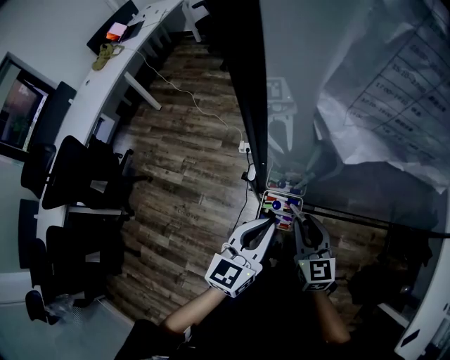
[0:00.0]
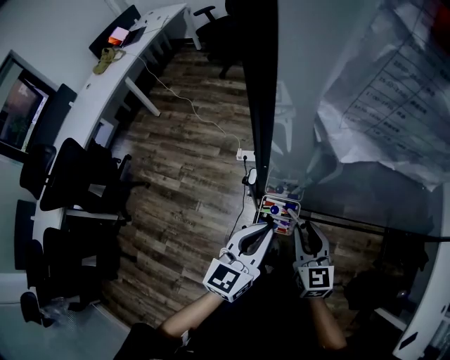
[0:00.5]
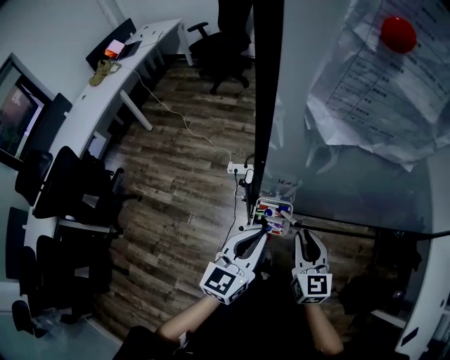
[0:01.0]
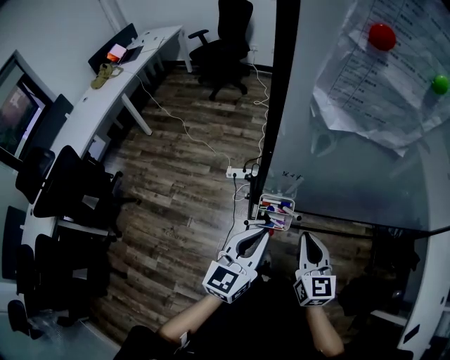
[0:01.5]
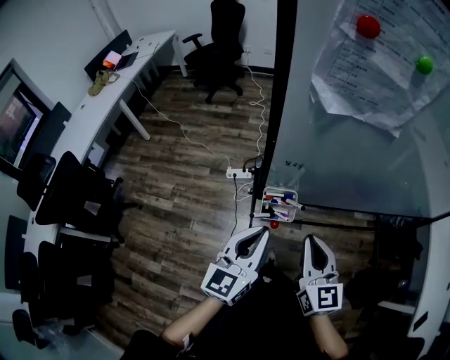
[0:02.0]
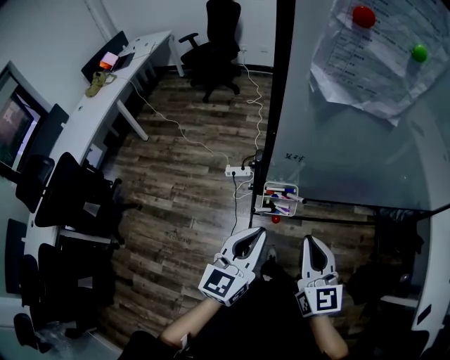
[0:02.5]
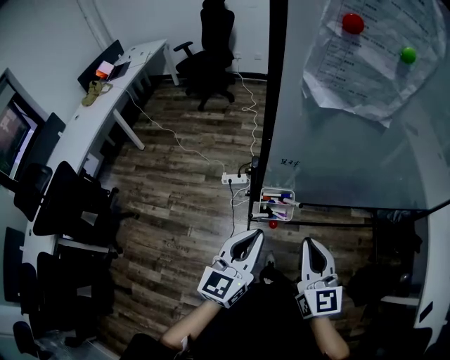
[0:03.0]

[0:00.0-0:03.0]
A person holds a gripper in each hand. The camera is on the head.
0:00.0 to 0:01.5: The left gripper changes place by approximately 5 cm. The right gripper moves upward and backward, approximately 10 cm.
0:01.5 to 0:03.0: The left gripper ends up approximately 5 cm from where it was; the right gripper goes roughly 10 cm backward and upward.

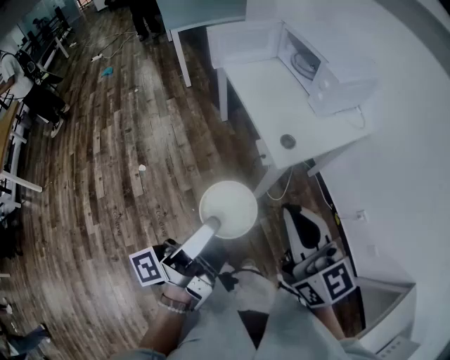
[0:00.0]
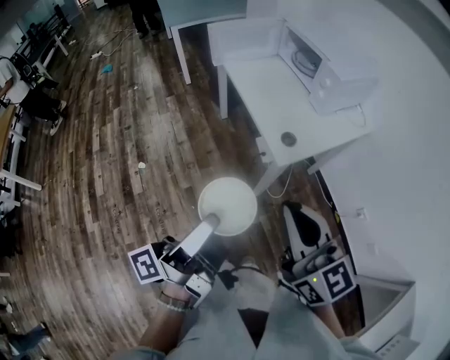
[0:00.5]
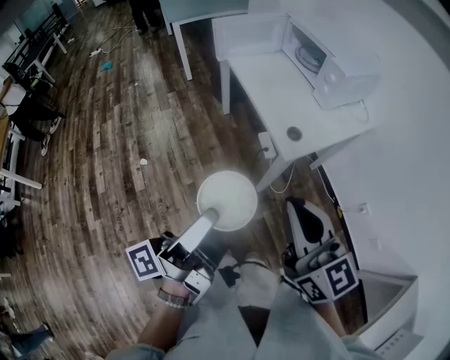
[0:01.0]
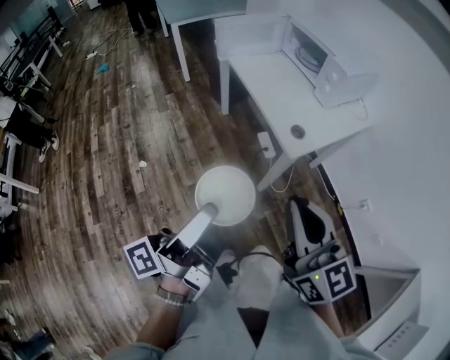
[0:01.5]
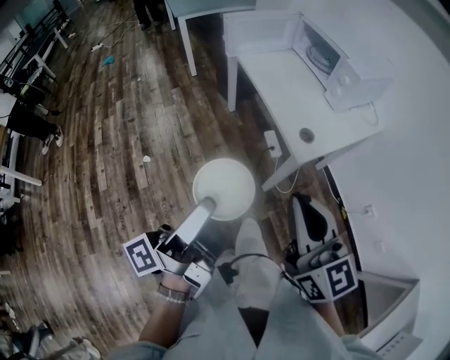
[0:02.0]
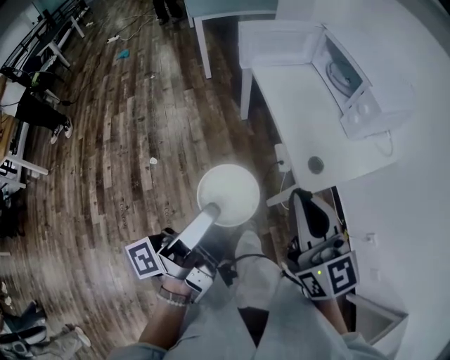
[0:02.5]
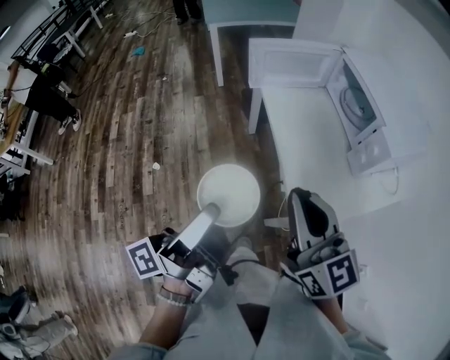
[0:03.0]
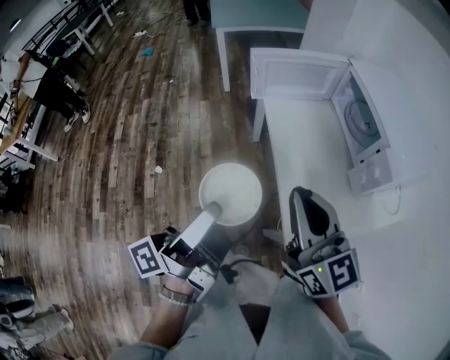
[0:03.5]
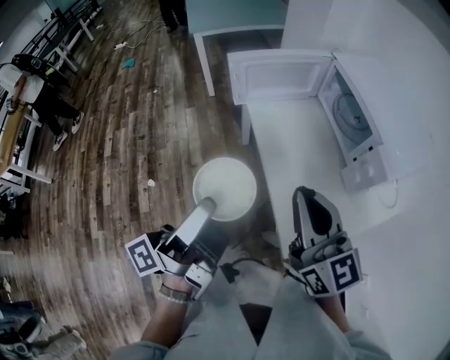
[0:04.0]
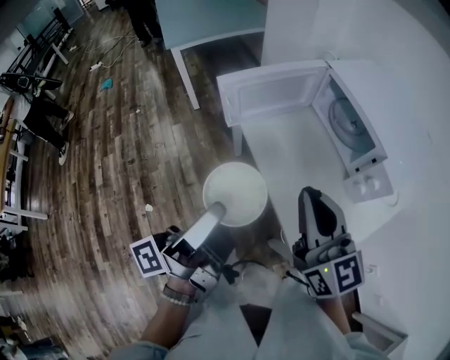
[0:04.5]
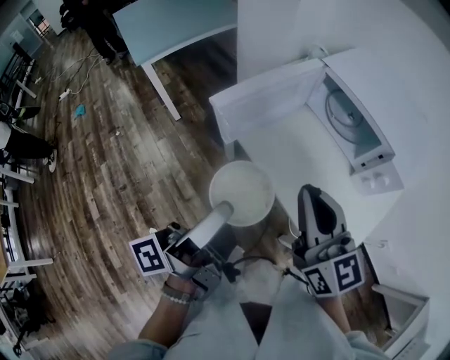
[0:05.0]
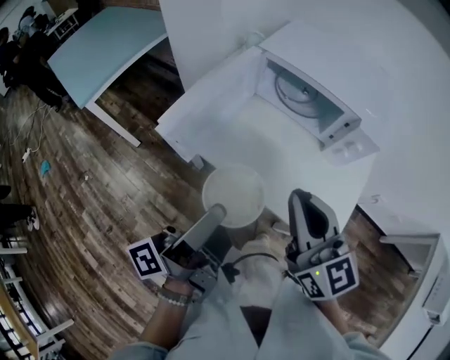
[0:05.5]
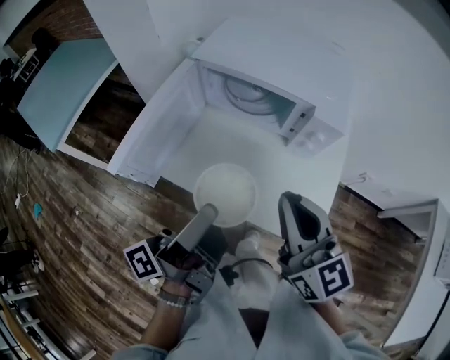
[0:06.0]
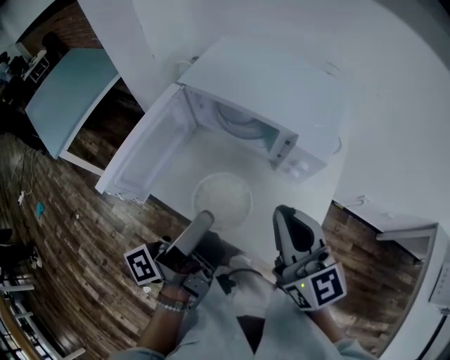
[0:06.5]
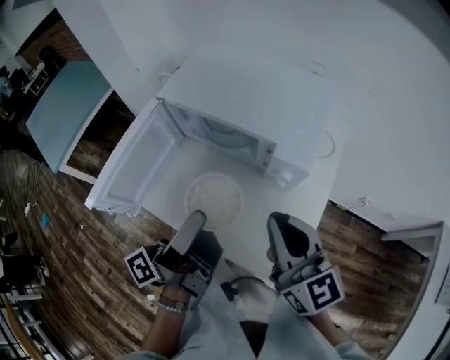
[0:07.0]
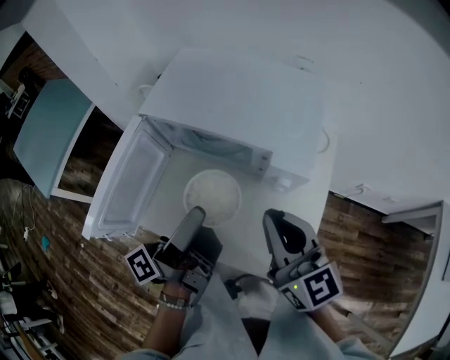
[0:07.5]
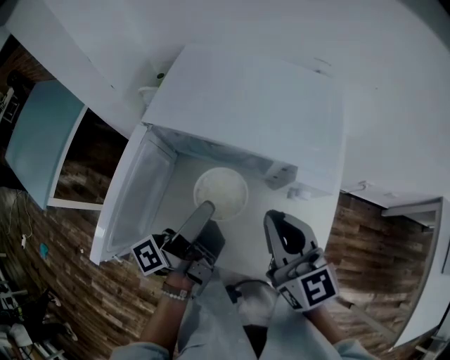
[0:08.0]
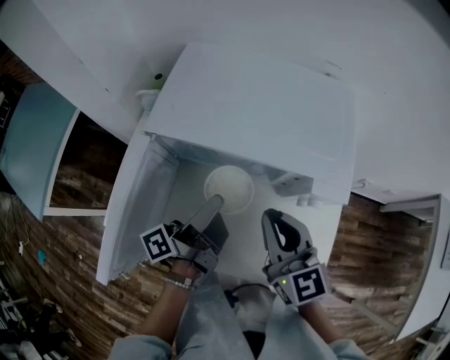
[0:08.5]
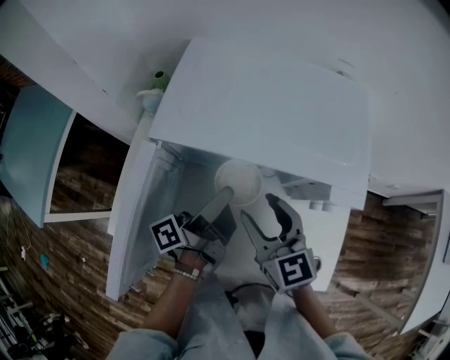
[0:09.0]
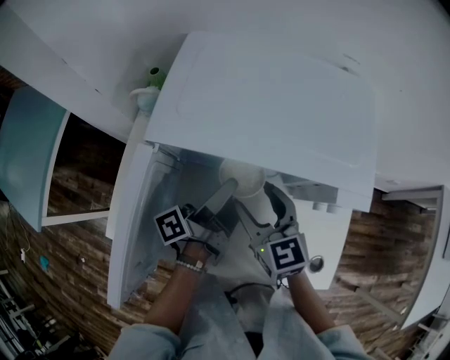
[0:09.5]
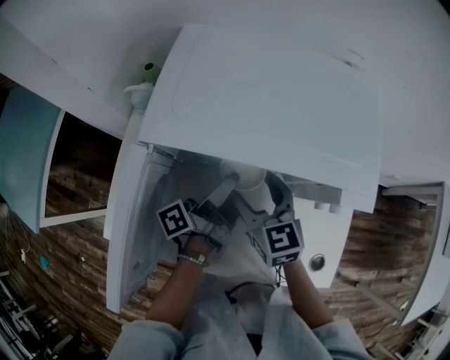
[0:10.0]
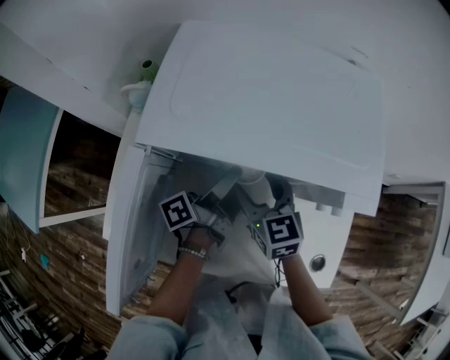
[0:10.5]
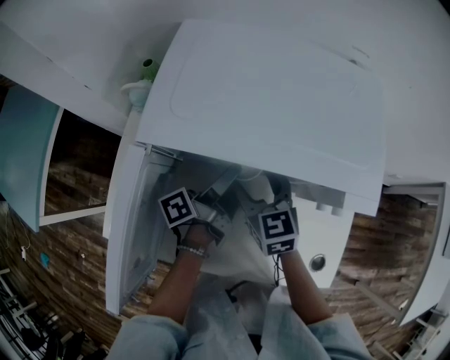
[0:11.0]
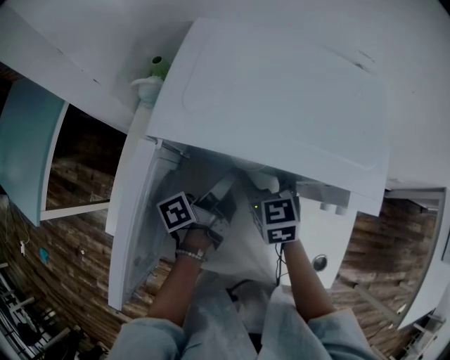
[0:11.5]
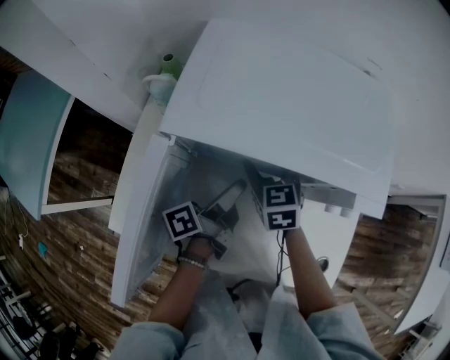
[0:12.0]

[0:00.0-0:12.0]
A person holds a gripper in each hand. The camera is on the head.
0:00.0 to 0:02.0: The right gripper ends up about 5 cm from where it was.
0:02.0 to 0:04.0: The right gripper moves approximately 35 cm.
0:04.0 to 0:06.0: The right gripper rotates approximately 50 degrees.
0:06.0 to 0:08.0: The right gripper changes place by some 15 cm.
0:08.0 to 0:10.0: The right gripper shifts by some 20 cm, and opens.
0:10.0 to 0:12.0: The right gripper moves approximately 5 cm.

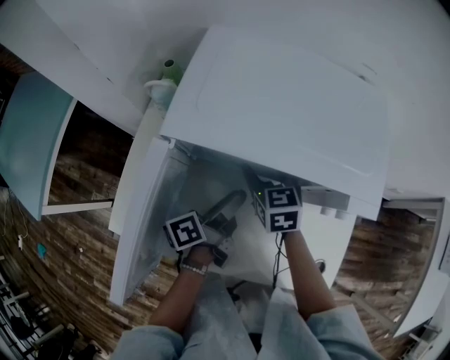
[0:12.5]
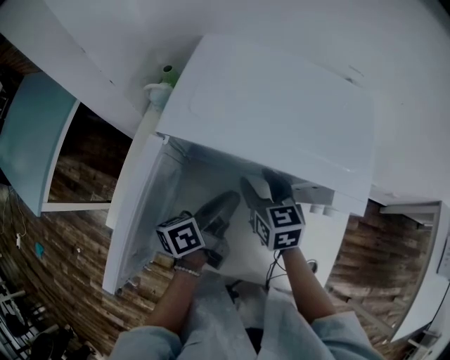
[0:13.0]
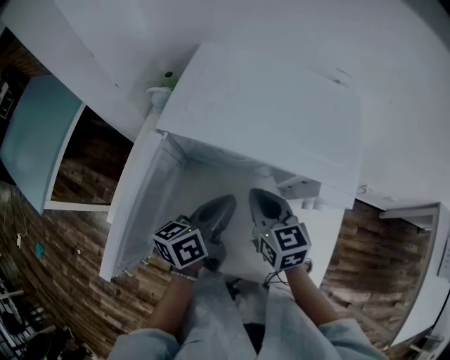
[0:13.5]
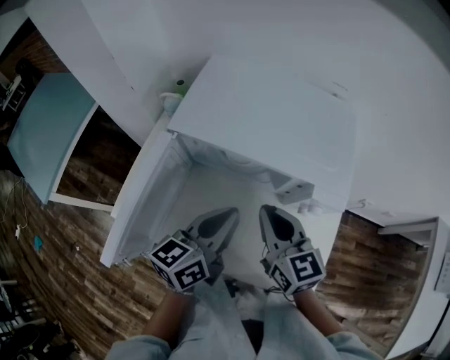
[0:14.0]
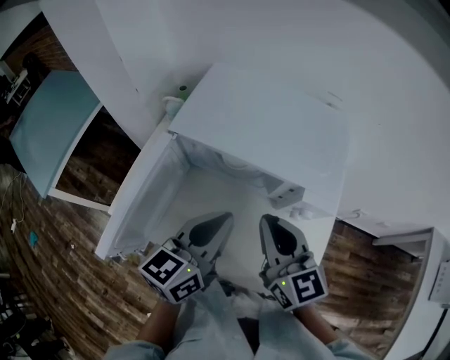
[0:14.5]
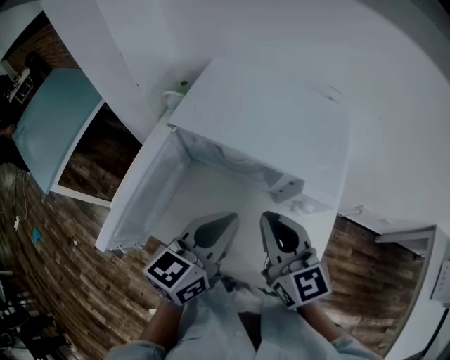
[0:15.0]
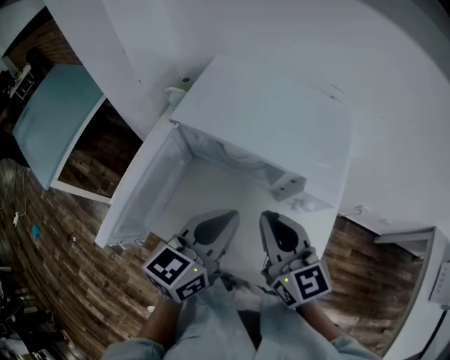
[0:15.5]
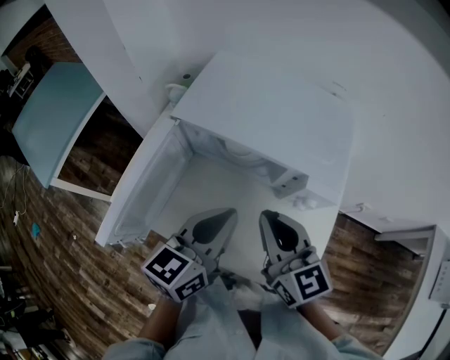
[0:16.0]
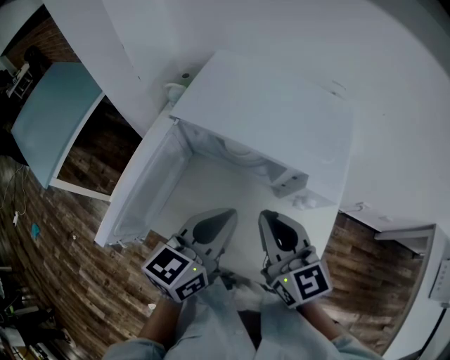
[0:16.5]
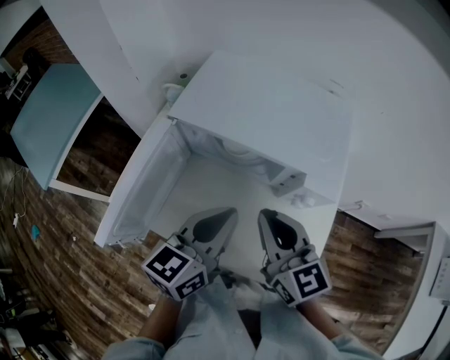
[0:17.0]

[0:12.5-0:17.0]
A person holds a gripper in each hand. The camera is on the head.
0:12.5 to 0:14.5: The right gripper moves upward, approximately 20 cm, swivels roughly 30 degrees, and closes up.

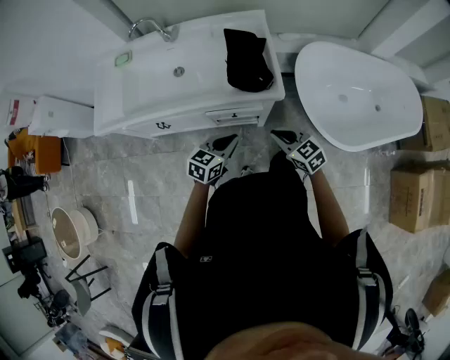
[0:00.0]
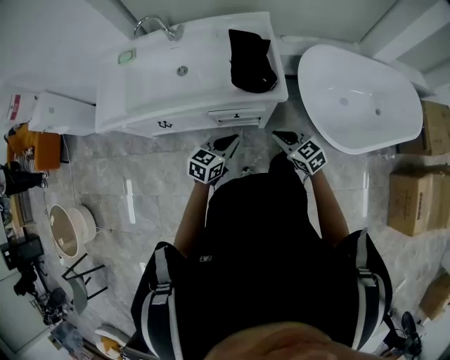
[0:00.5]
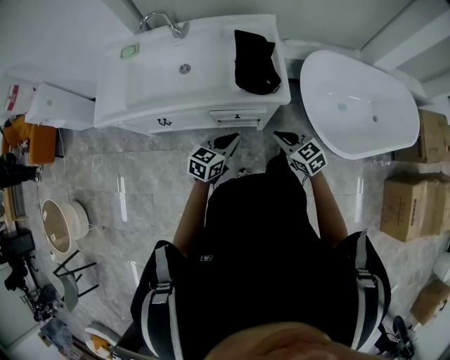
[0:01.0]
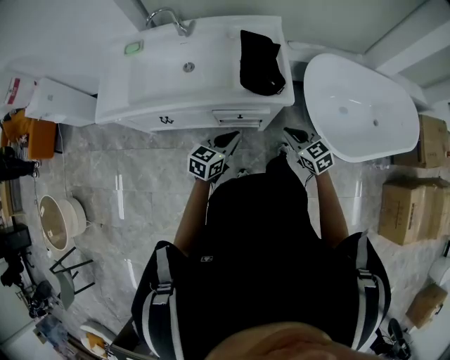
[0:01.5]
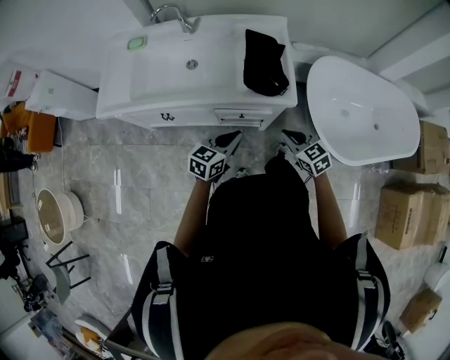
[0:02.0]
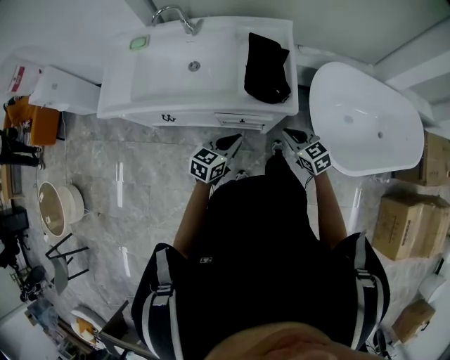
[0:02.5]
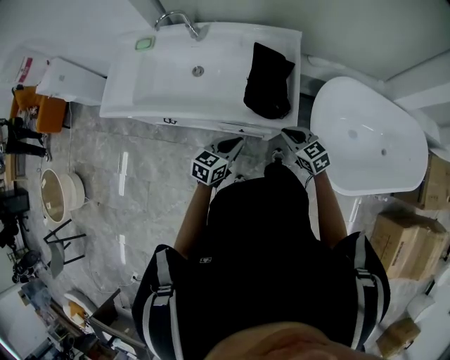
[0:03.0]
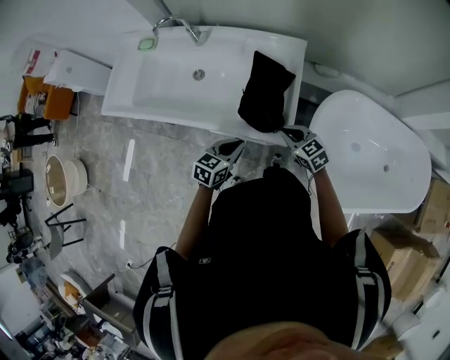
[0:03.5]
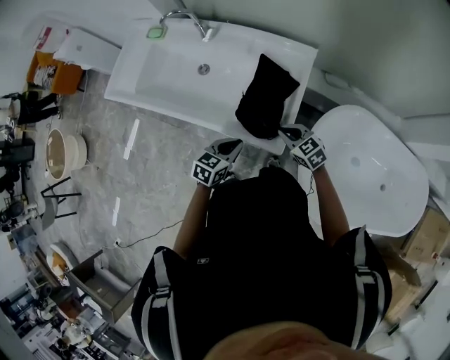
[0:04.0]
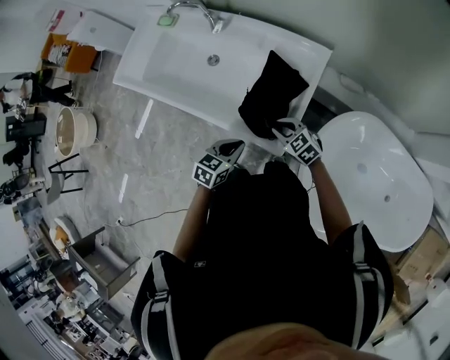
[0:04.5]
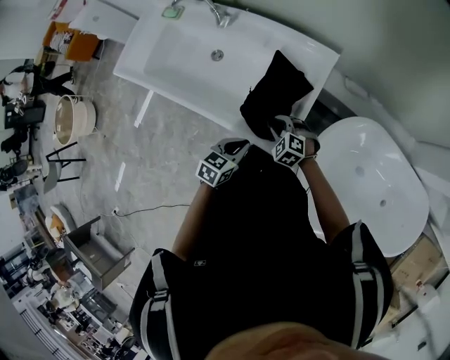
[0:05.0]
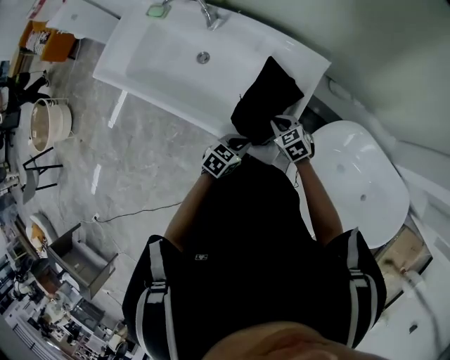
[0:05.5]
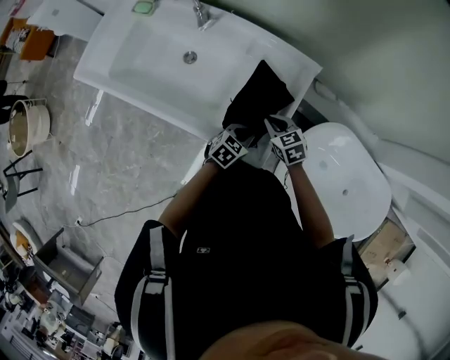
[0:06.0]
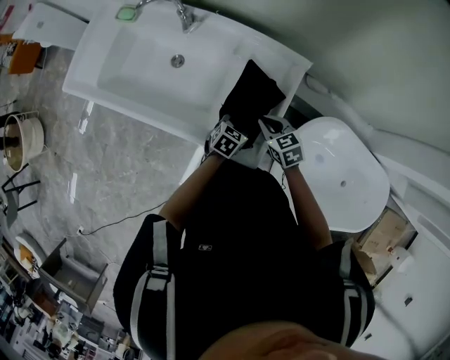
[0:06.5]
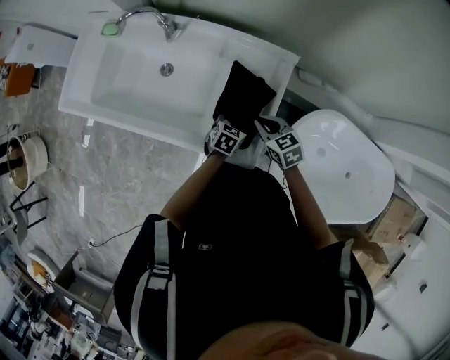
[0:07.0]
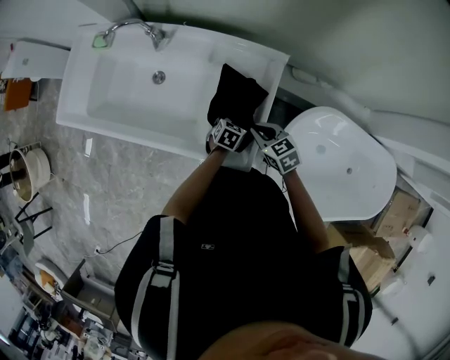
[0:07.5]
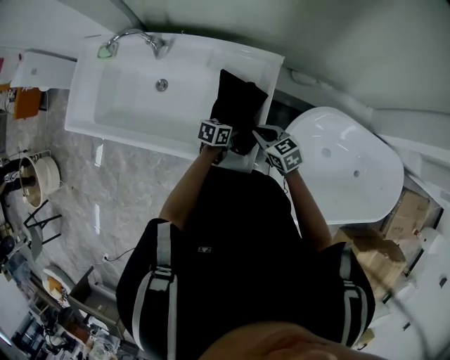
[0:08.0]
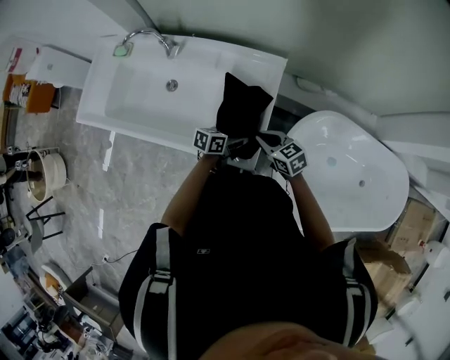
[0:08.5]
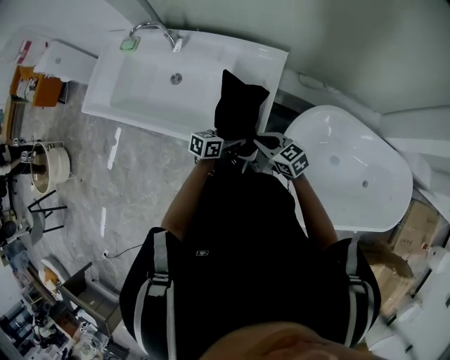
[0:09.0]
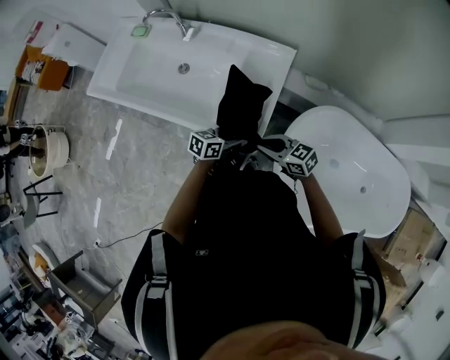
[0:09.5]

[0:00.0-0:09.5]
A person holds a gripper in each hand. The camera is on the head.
0:00.0 to 0:02.0: The grippers make only small movements.
0:02.0 to 0:04.0: The left gripper shifts approximately 20 cm forward and to the right, and turns by roughly 20 degrees. The right gripper shifts about 20 cm forward, and changes its angle by about 30 degrees.
0:04.0 to 0:05.5: The right gripper shifts about 10 cm forward, and opens, then closes once more, while the left gripper moves to the right and downward, roughly 10 cm.
0:05.5 to 0:07.5: The right gripper shifts by roughly 5 cm. Meanwhile the left gripper heads forward, downward and to the right, covering about 20 cm, and opens its fingers.
0:07.5 to 0:09.5: The left gripper shifts by about 20 cm, and swivels approximately 30 degrees; the right gripper moves about 15 cm, and turns by some 30 degrees.
